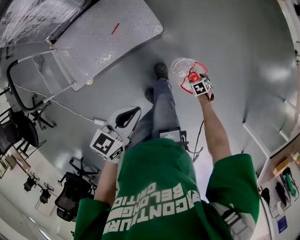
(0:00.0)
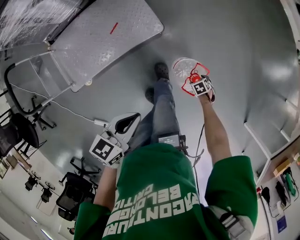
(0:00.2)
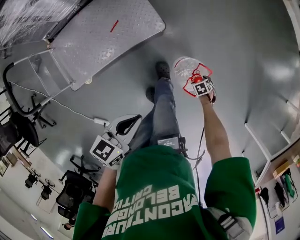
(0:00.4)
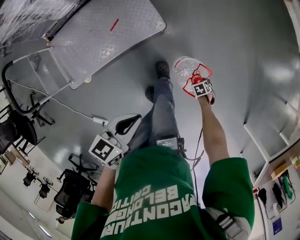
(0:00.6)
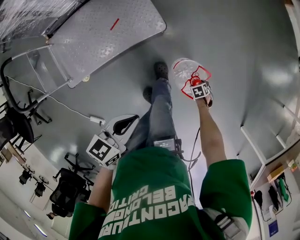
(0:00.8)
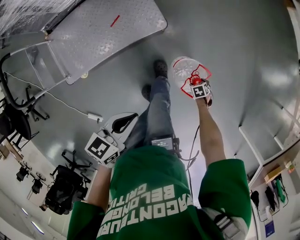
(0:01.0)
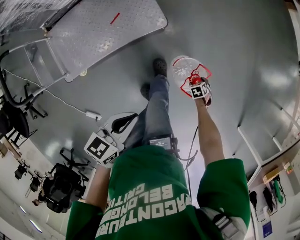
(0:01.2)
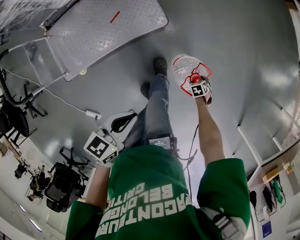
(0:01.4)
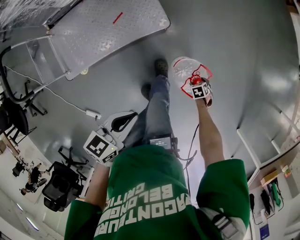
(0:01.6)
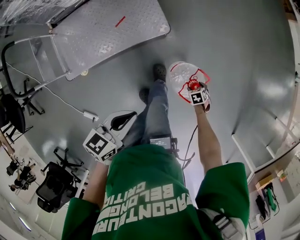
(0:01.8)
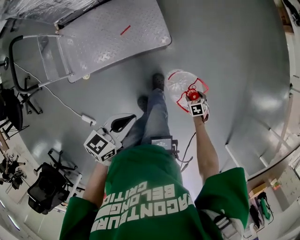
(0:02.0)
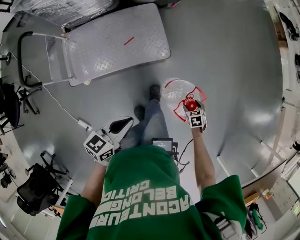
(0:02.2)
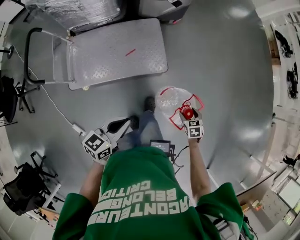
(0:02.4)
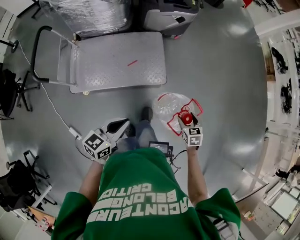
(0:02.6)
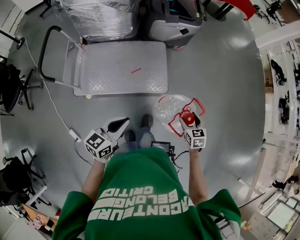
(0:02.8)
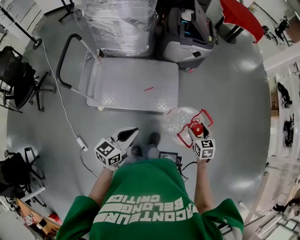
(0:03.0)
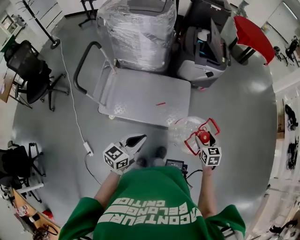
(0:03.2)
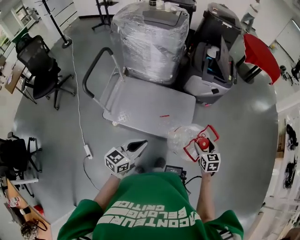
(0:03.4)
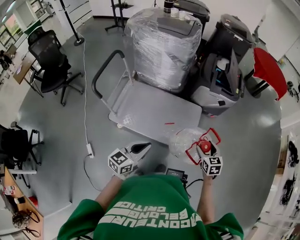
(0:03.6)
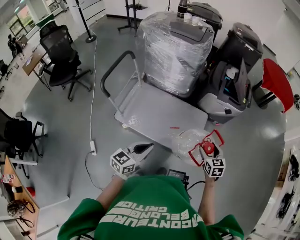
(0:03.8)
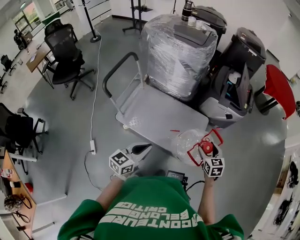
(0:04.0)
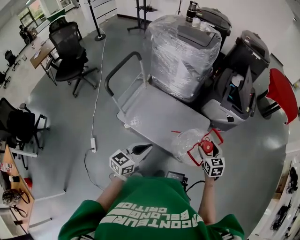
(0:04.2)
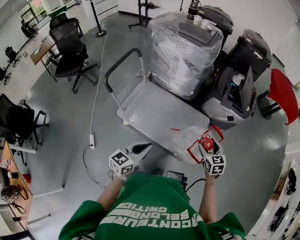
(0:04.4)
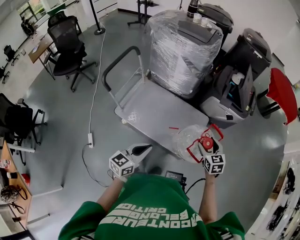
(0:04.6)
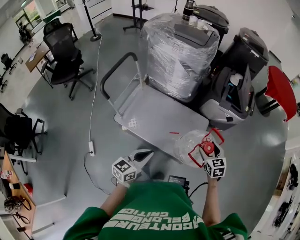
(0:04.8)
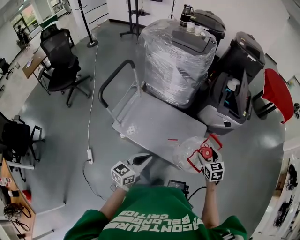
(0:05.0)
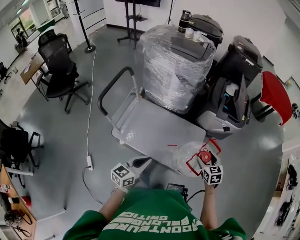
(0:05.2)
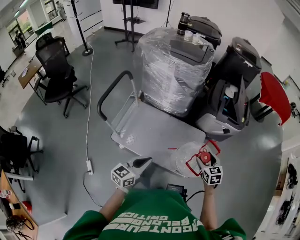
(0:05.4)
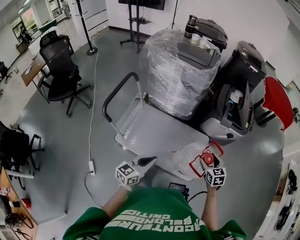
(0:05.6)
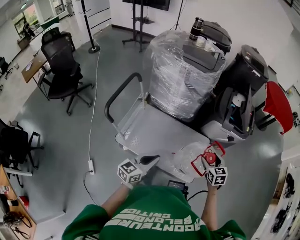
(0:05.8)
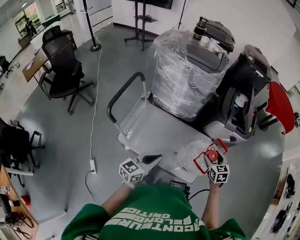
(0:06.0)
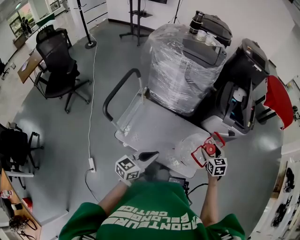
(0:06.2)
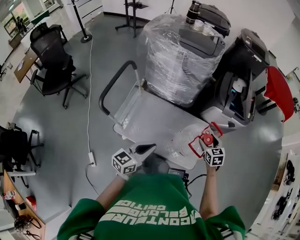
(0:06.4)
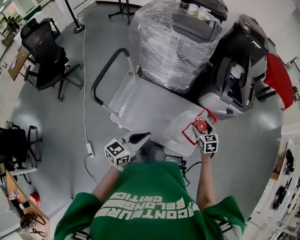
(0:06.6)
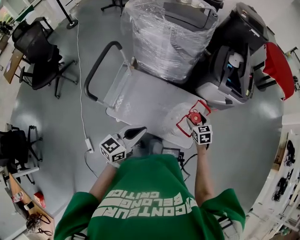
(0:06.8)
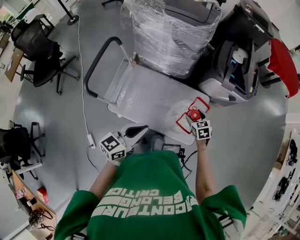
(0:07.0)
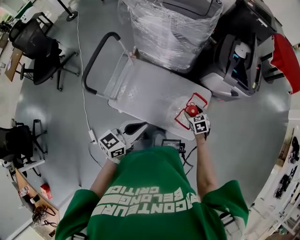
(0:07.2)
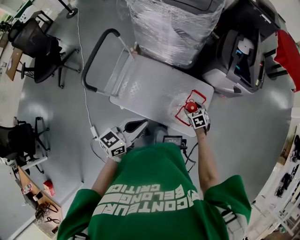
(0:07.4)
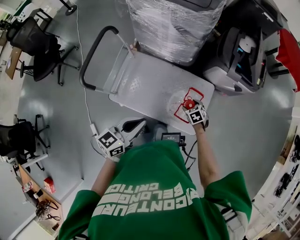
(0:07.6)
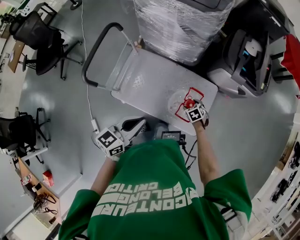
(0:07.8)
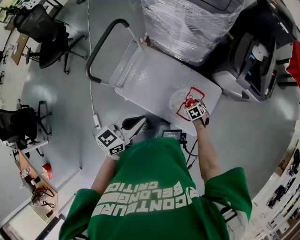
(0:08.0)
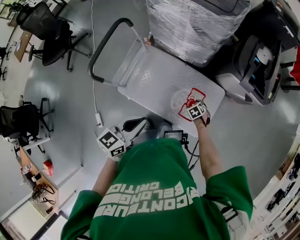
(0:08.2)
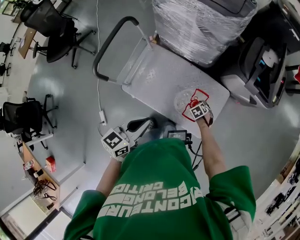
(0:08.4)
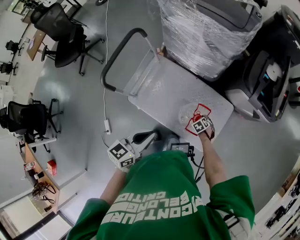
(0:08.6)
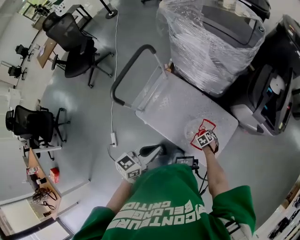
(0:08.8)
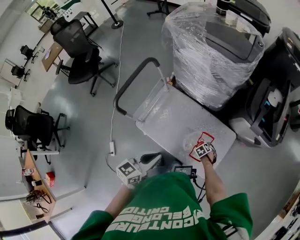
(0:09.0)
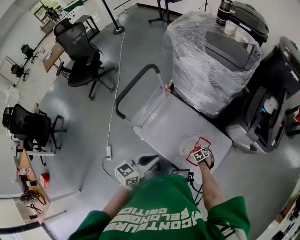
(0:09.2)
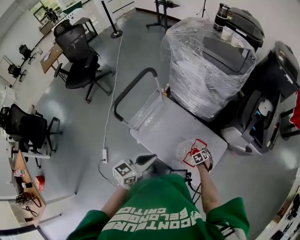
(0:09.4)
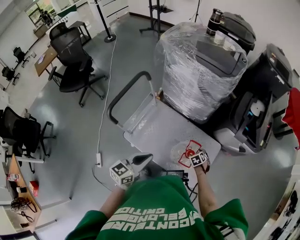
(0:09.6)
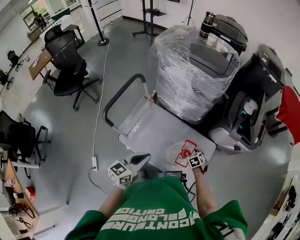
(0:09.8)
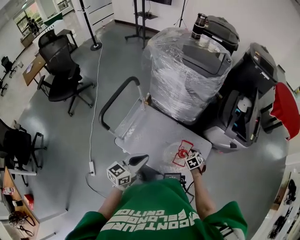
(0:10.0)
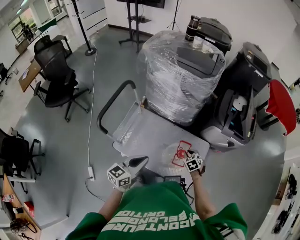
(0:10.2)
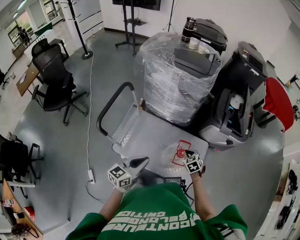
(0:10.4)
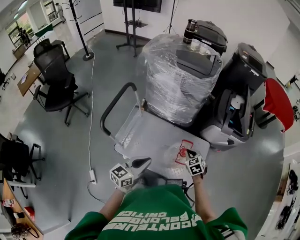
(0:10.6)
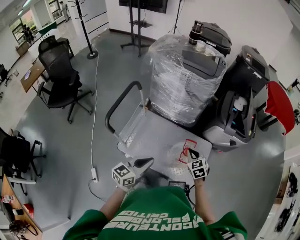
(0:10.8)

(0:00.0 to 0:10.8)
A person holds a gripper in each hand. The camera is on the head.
0:00.0 - 0:01.6: The grippers move only a little.
0:01.6 - 0:03.0: The left gripper is displaced upward by about 10 cm, and changes its angle by some 30 degrees. Meanwhile the right gripper is displaced upward by about 40 cm, and points its fingers some 40 degrees further upward.
0:03.0 - 0:04.6: The right gripper shifts by about 25 cm, and rotates some 30 degrees; the left gripper changes place by some 10 cm, and changes its angle by some 20 degrees.
0:04.6 - 0:06.2: The left gripper shifts some 15 cm to the left and forward; the right gripper moves forward and to the left, some 15 cm.
0:06.2 - 0:07.8: The right gripper moves downward, roughly 25 cm, and points its fingers roughly 30 degrees further downward. Meanwhile the left gripper is displaced forward by about 10 cm.
0:07.8 - 0:09.2: The right gripper is displaced downward by roughly 10 cm.
0:09.2 - 0:10.8: The left gripper moves roughly 5 cm, while the right gripper shifts some 35 cm upward, tilts its fingers some 40 degrees upward, and closes up.

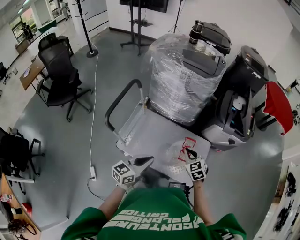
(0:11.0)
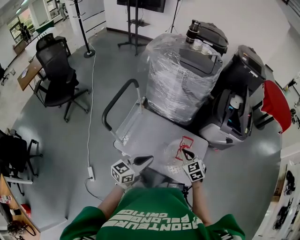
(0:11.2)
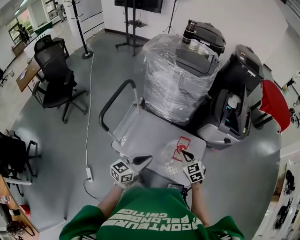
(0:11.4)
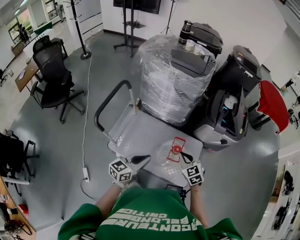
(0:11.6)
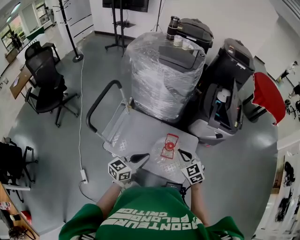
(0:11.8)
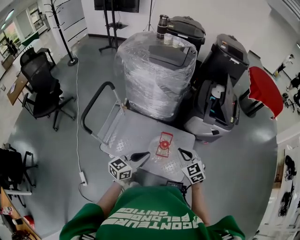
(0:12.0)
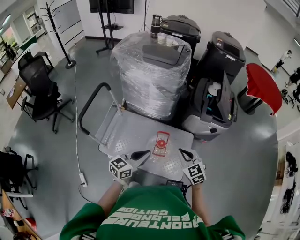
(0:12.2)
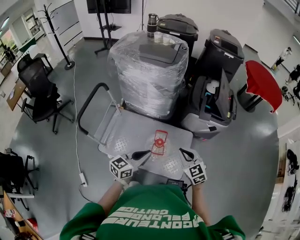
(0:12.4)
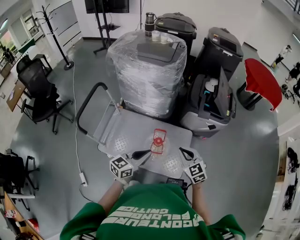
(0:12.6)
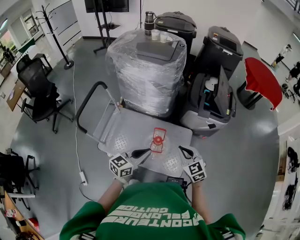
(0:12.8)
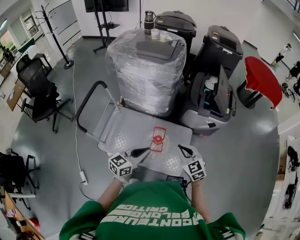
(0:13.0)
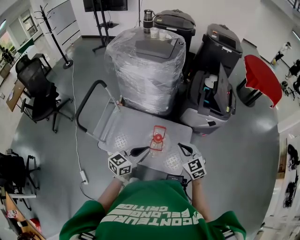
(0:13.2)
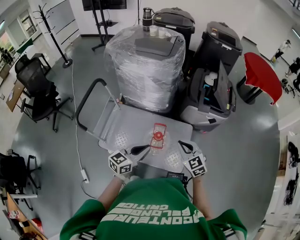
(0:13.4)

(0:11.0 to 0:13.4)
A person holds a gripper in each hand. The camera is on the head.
0:11.0 - 0:12.2: Both grippers travel together to the right, approximately 15 cm.
0:12.2 - 0:13.4: The grippers move only a little.

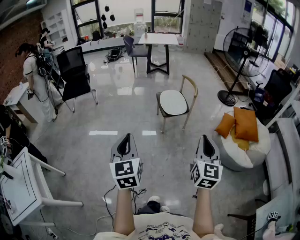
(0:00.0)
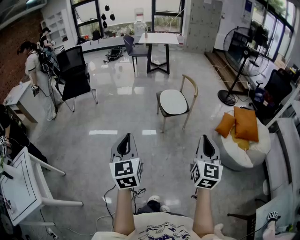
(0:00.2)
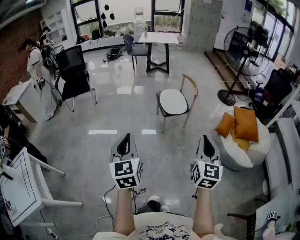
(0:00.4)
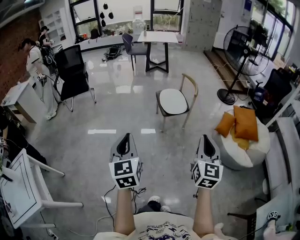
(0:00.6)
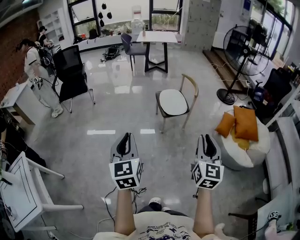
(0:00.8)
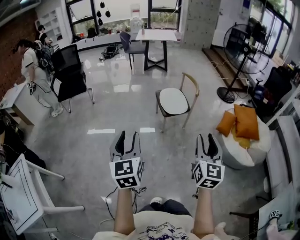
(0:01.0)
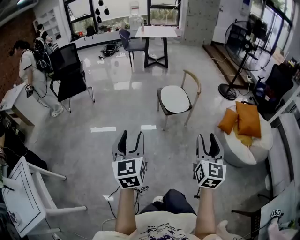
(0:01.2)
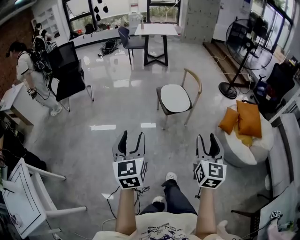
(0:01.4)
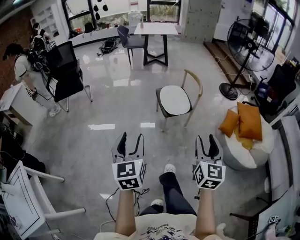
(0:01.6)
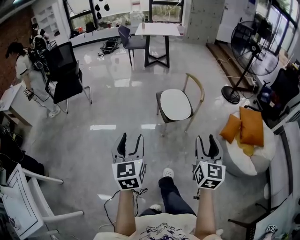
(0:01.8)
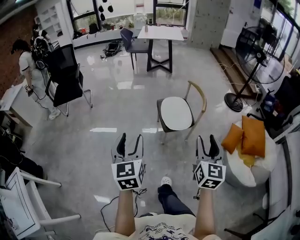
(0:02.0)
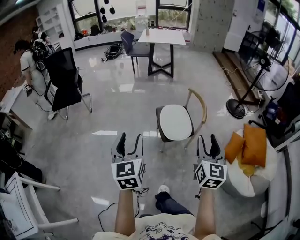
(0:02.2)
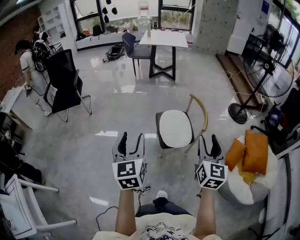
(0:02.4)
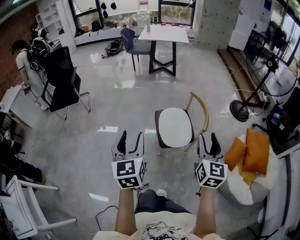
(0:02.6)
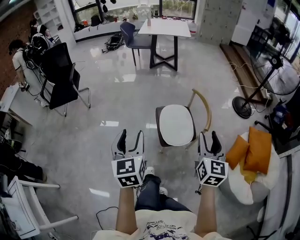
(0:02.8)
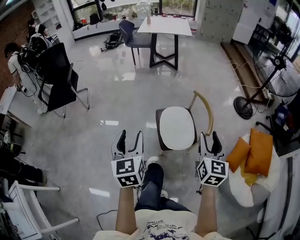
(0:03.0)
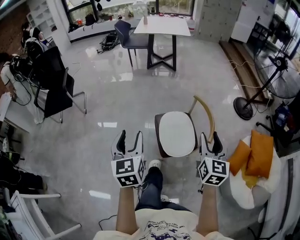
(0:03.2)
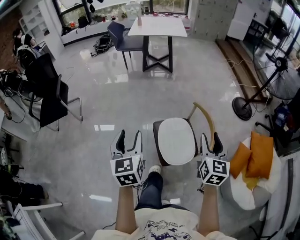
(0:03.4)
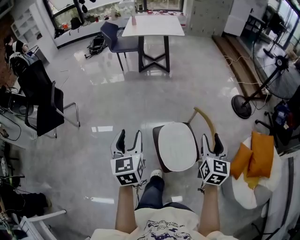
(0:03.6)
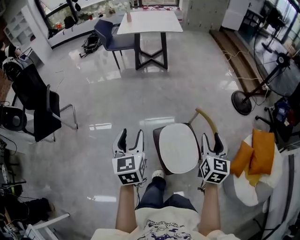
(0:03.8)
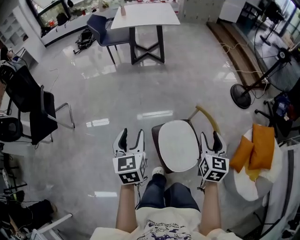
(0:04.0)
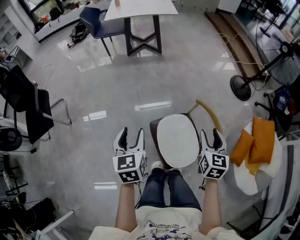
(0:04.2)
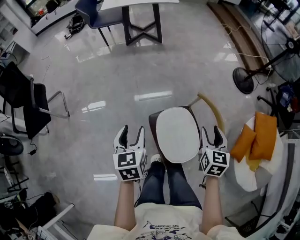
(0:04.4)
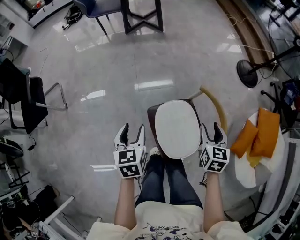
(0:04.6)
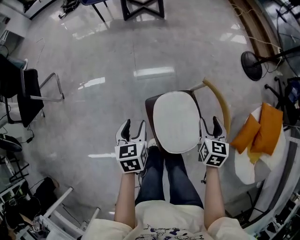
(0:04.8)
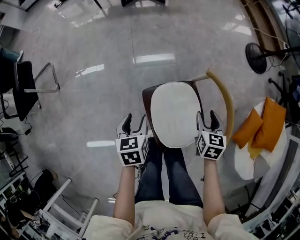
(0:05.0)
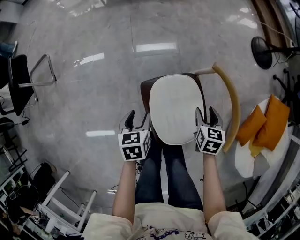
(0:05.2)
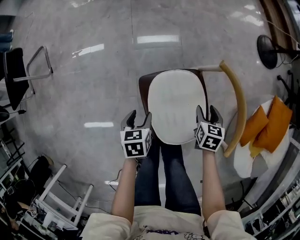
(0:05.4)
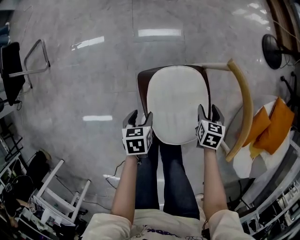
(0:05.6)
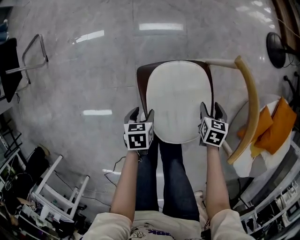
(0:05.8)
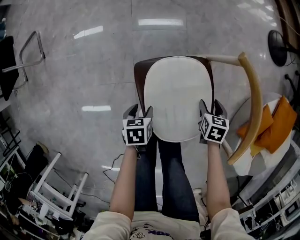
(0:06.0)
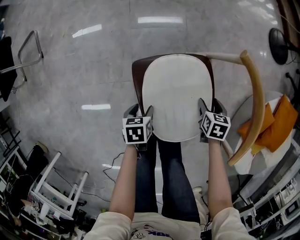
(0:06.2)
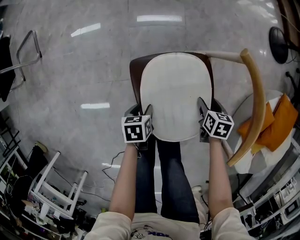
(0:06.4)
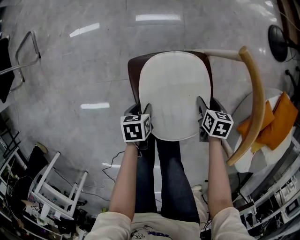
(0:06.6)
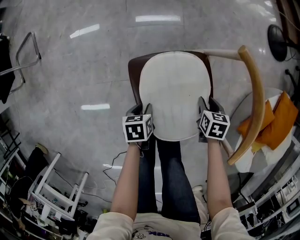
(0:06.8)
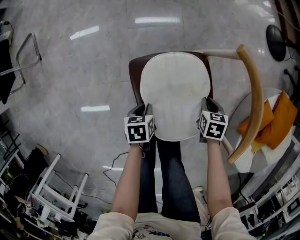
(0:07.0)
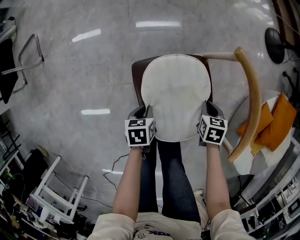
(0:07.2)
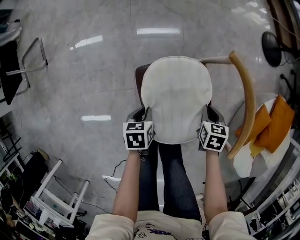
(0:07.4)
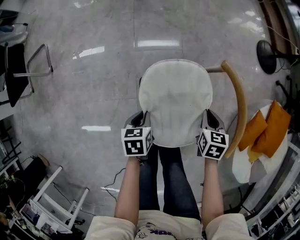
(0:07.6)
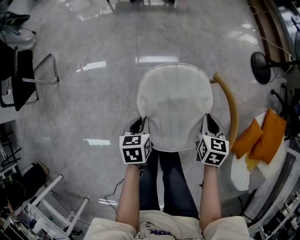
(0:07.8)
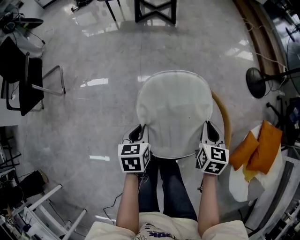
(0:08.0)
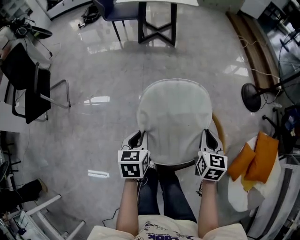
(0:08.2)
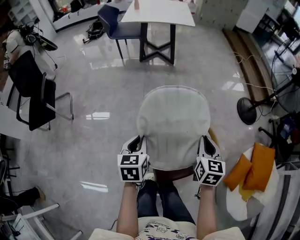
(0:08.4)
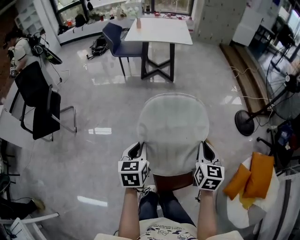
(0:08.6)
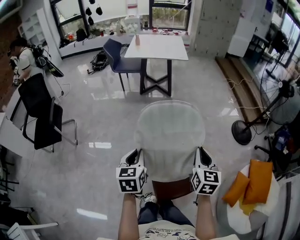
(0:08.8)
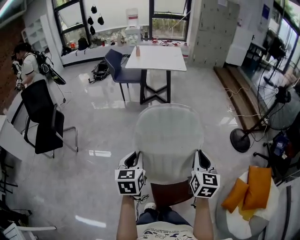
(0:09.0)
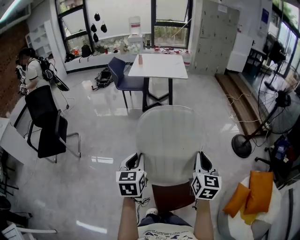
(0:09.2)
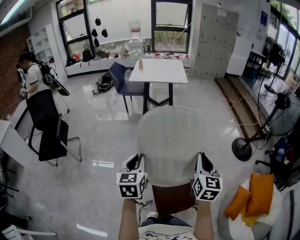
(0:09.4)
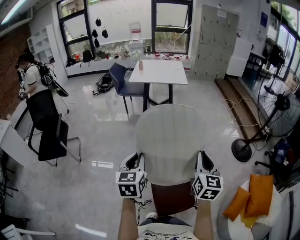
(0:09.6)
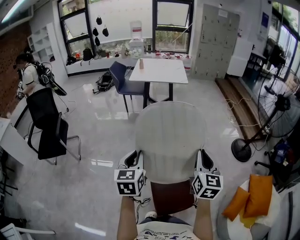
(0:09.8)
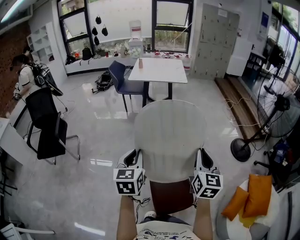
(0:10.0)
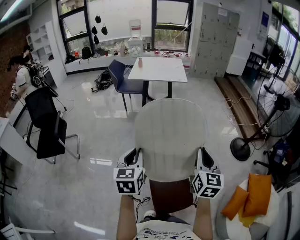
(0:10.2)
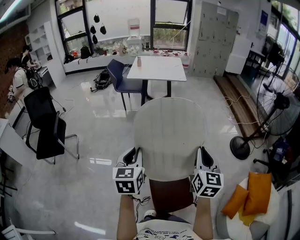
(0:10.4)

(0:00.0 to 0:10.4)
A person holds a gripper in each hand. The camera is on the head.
0:00.0 - 0:01.4: The two grippers go some 10 cm forward. The left gripper opens up; the right gripper opens up.
0:01.4 - 0:03.0: Both grippers are carried forward, approximately 50 cm.
0:03.0 - 0:04.4: The left gripper shifts about 40 cm forward, and turns by roughly 20 degrees. The right gripper is displaced forward and downward by approximately 40 cm, and swivels roughly 20 degrees.
0:04.4 - 0:06.0: Both grippers travel together downward, approximately 50 cm. The left gripper points its fingers about 40 degrees further downward. Meanwhile the right gripper tips its fingers downward by about 40 degrees.
0:06.0 - 0:07.4: Both grippers move upward, approximately 5 cm. The right gripper closes its fingers. The left gripper closes its fingers.
0:07.4 - 0:09.0: Both grippers move upward, some 60 cm. The right gripper tilts its fingers about 50 degrees upward. Meanwhile the left gripper tips its fingers upward by about 40 degrees.
0:09.0 - 0:10.4: The grippers both shift upward by roughly 10 cm.
